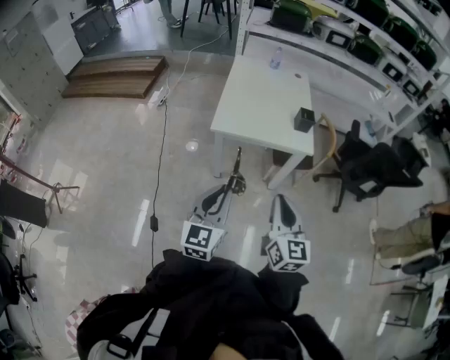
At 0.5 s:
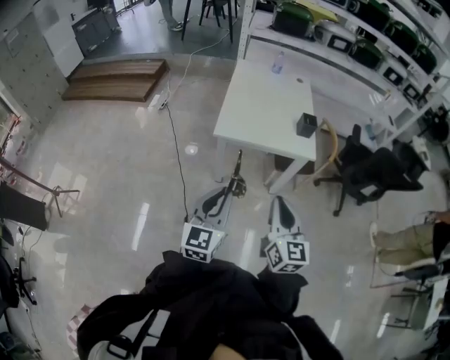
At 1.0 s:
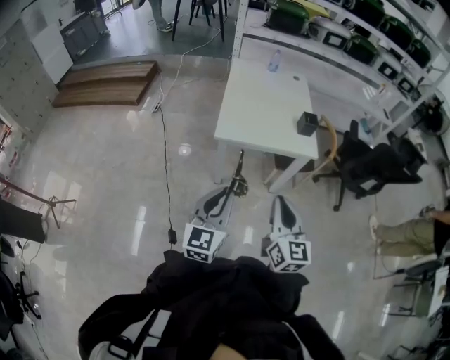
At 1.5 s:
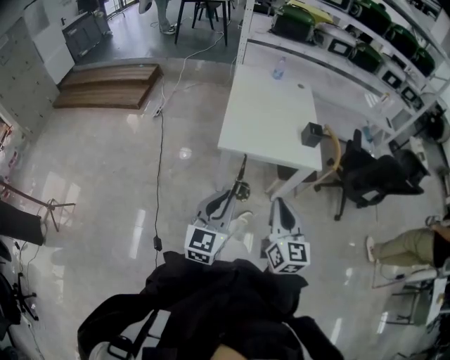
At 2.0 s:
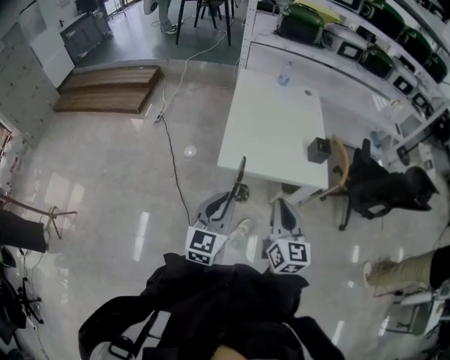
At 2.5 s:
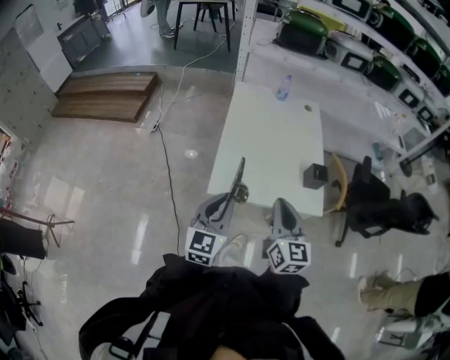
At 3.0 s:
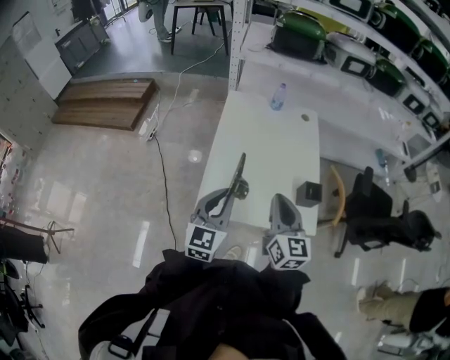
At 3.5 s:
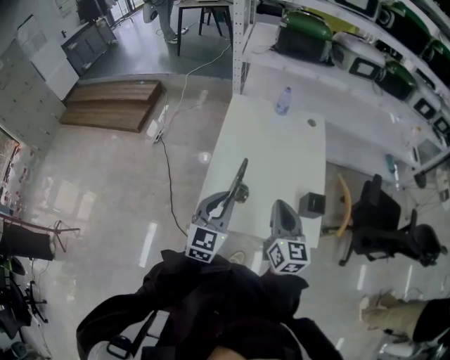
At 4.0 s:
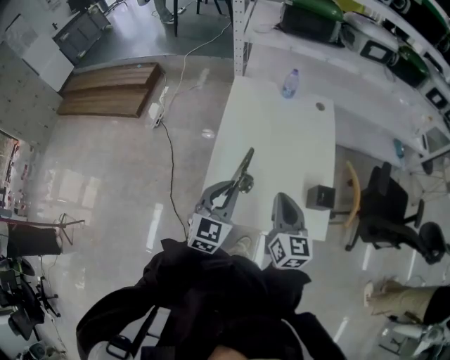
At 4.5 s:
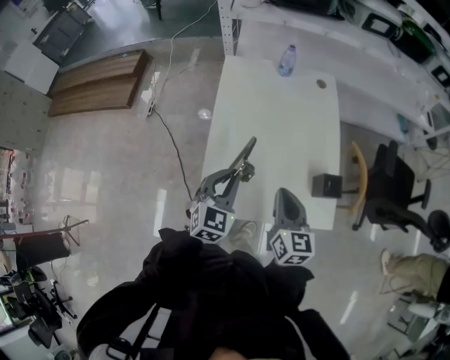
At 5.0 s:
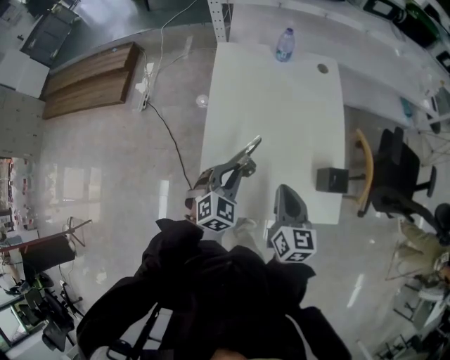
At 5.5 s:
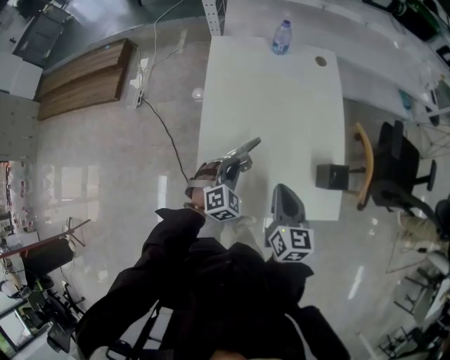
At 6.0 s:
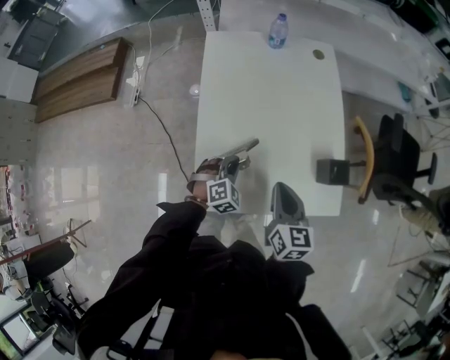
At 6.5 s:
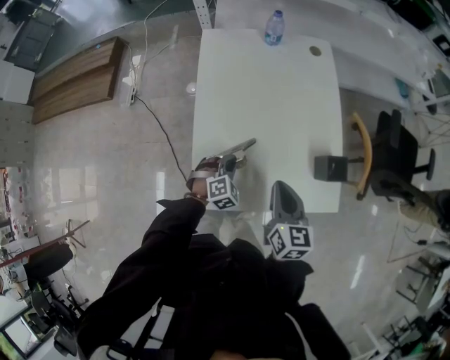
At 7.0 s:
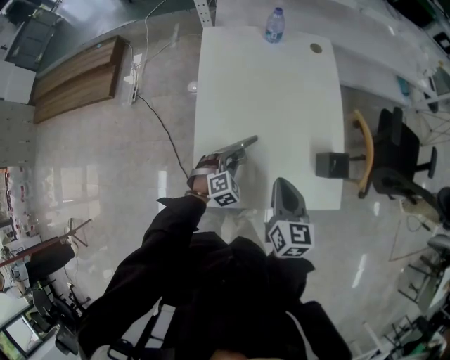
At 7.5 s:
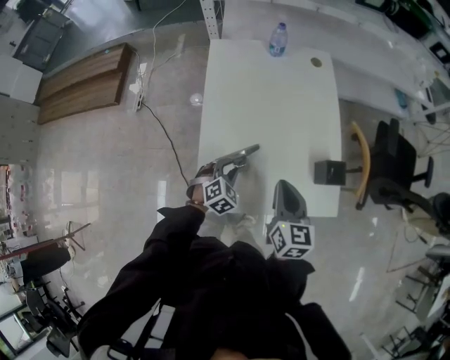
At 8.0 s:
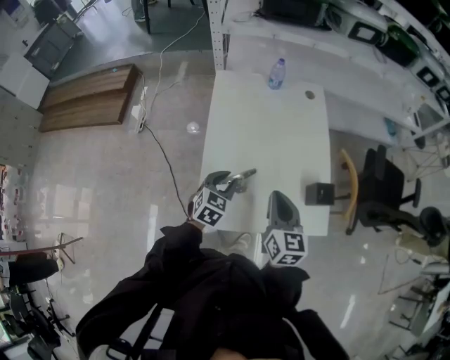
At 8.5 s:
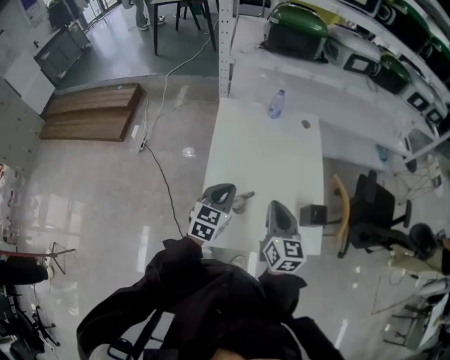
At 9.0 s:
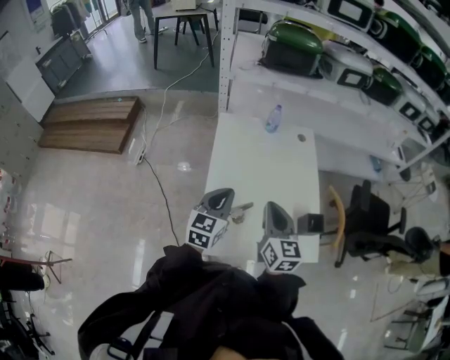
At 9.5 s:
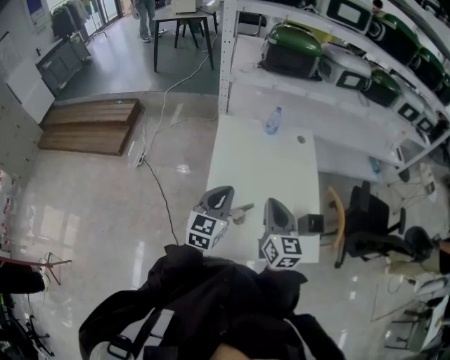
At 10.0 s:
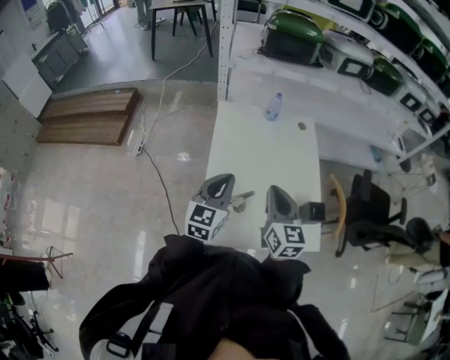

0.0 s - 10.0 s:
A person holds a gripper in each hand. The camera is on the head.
0.0 s - 2.0 s: Both grippers move forward and to the left, roughly 20 cm.
2.0 s - 4.0 s: Both grippers travel together forward, approximately 35 cm.
4.0 s - 6.0 s: The right gripper goes about 10 cm downward. The left gripper shifts roughly 25 cm downward, and points its fingers some 30 degrees further downward.
6.0 s - 8.0 s: The right gripper heads upward, covering about 5 cm. Meanwhile the left gripper travels upward by approximately 10 cm, and changes its angle by about 40 degrees.
8.0 s - 10.0 s: The left gripper travels upward by approximately 20 cm, turns by about 30 degrees, and closes. Meanwhile the right gripper travels upward by about 10 cm.

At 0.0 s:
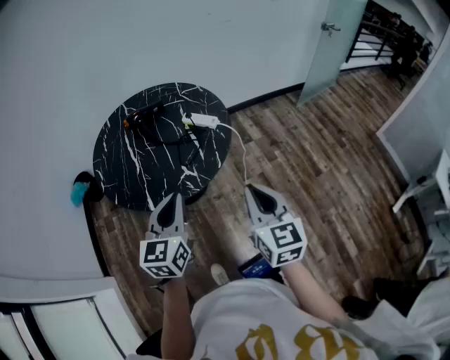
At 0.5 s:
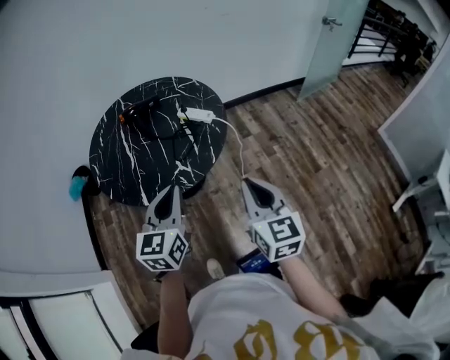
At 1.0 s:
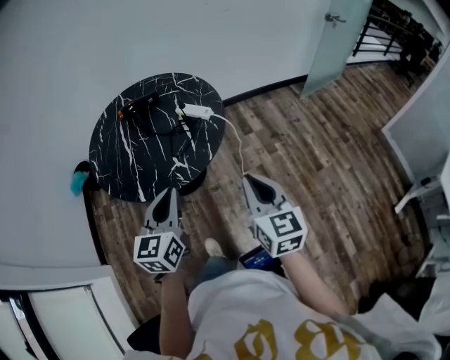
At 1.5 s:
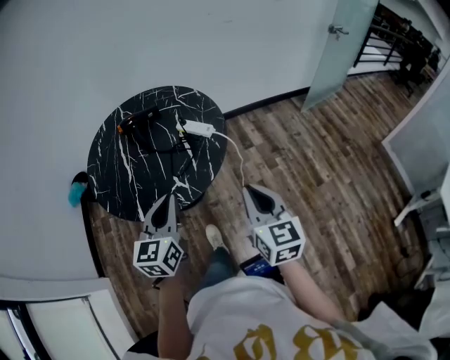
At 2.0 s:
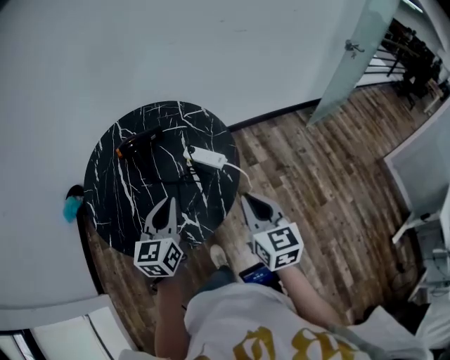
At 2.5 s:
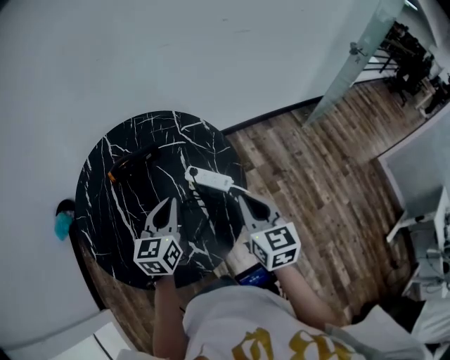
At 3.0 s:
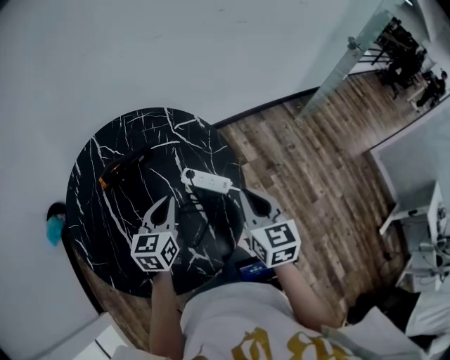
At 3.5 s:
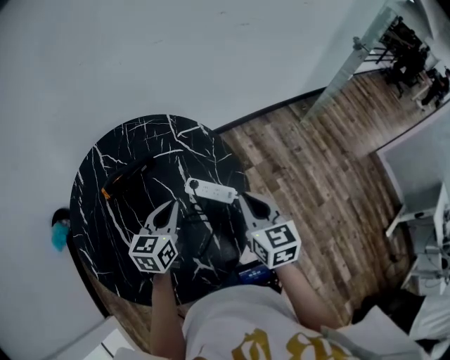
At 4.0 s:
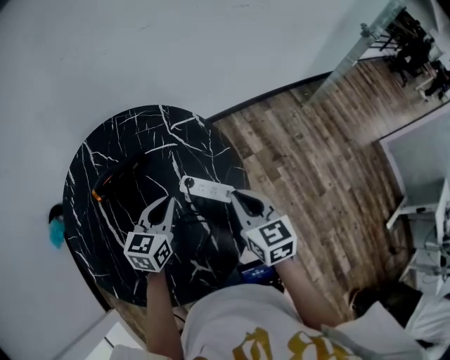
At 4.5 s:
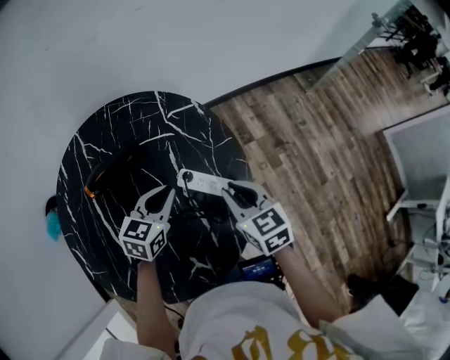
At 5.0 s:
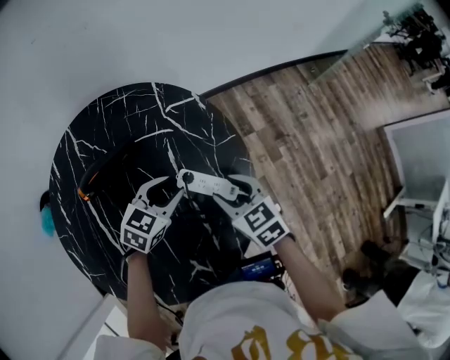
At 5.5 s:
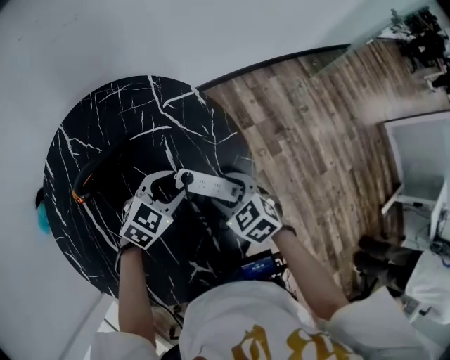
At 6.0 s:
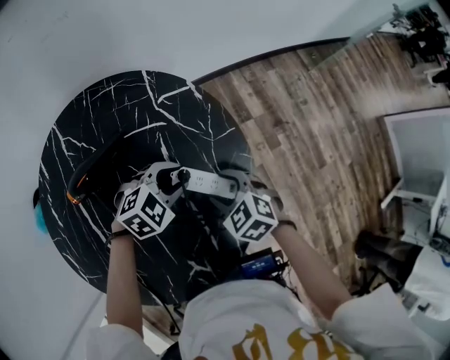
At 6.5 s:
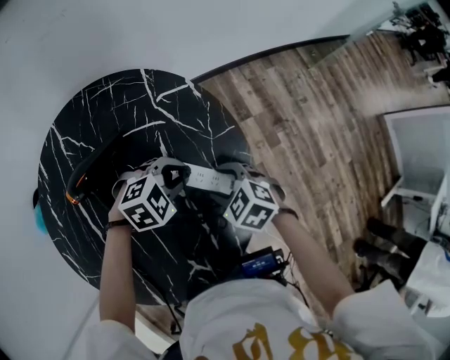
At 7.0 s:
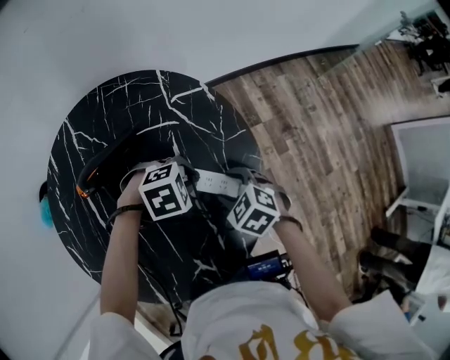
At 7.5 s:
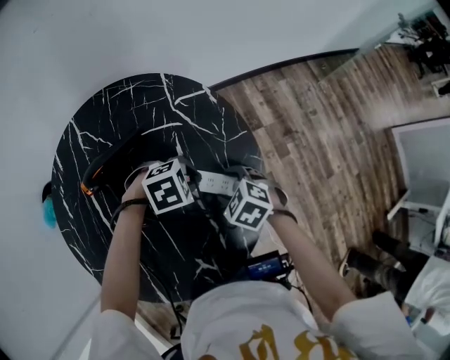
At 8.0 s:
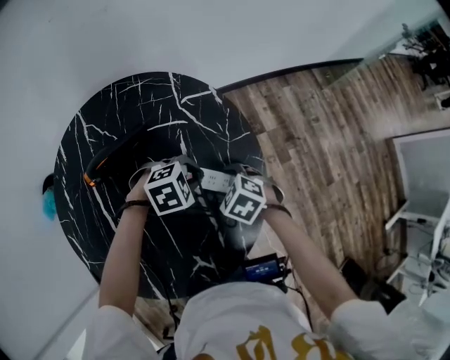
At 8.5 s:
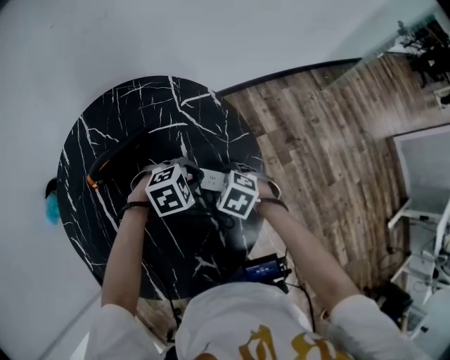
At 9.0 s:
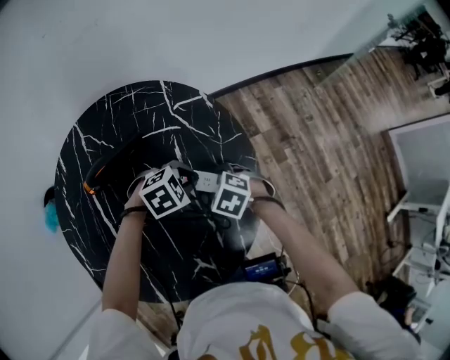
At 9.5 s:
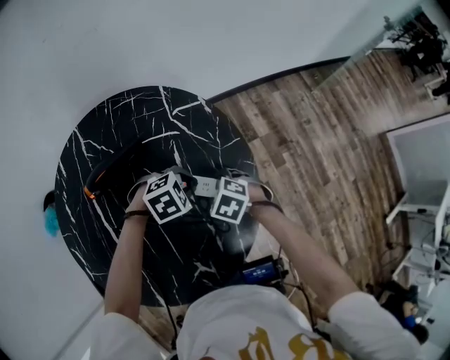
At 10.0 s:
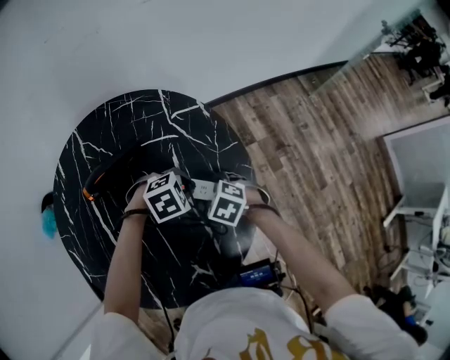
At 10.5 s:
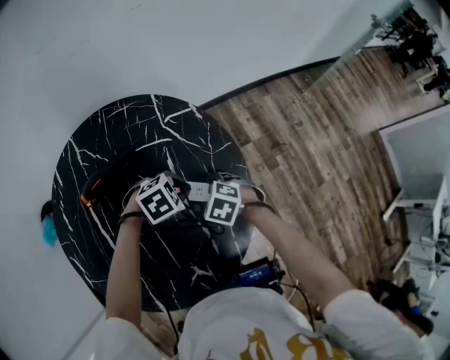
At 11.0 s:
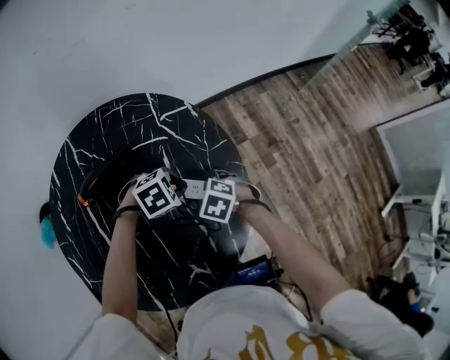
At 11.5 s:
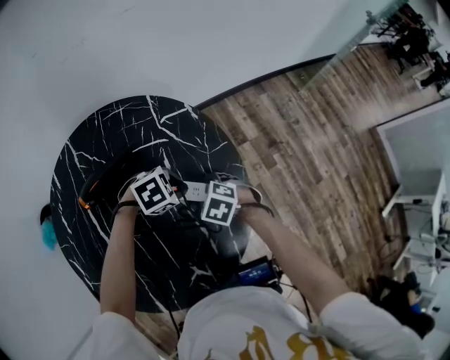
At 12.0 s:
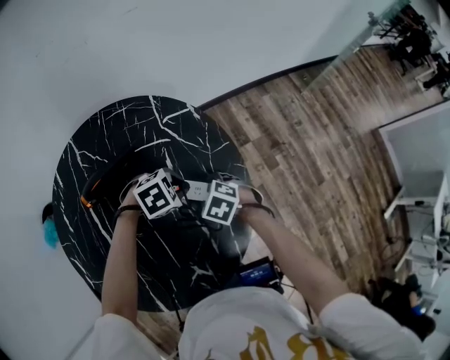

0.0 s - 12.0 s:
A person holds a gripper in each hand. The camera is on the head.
0.0 s - 2.0 s: Both grippers travel together forward, about 20 cm.
2.0 s - 4.0 s: Both grippers move forward and downward, approximately 25 cm. The left gripper turns by some 20 degrees.
4.0 s - 6.0 s: The left gripper heads downward and forward, covering some 10 cm, swivels roughly 60 degrees, and opens its fingers; the right gripper shifts about 15 cm downward, turns by some 40 degrees, and opens its fingers.
8.0 s - 12.0 s: The grippers make only small movements.

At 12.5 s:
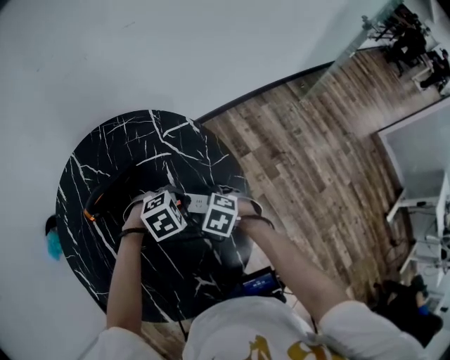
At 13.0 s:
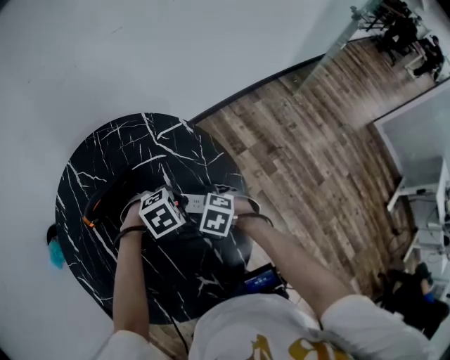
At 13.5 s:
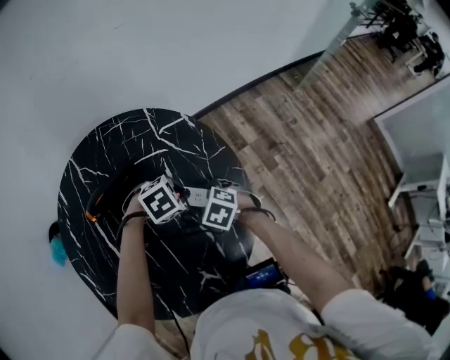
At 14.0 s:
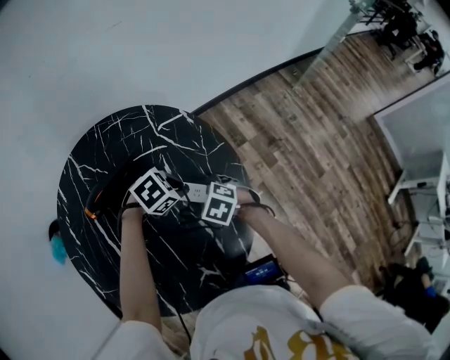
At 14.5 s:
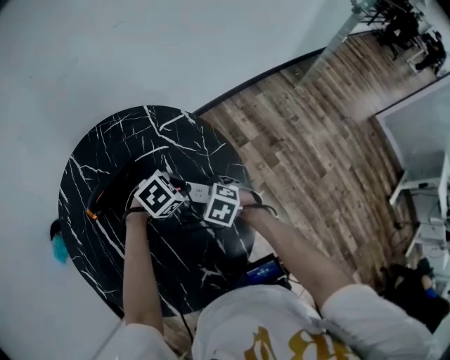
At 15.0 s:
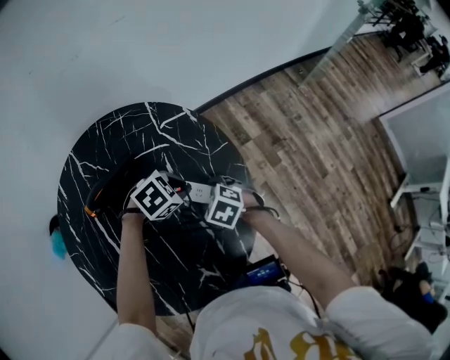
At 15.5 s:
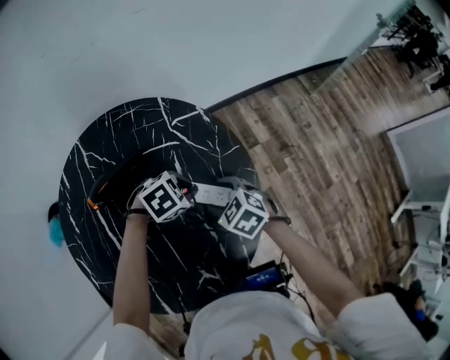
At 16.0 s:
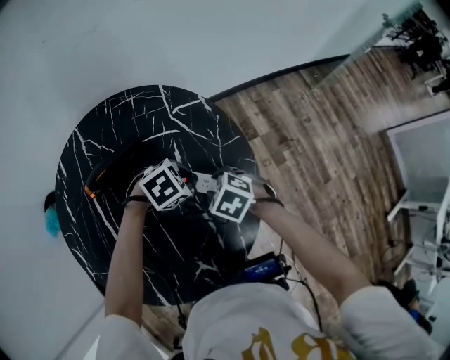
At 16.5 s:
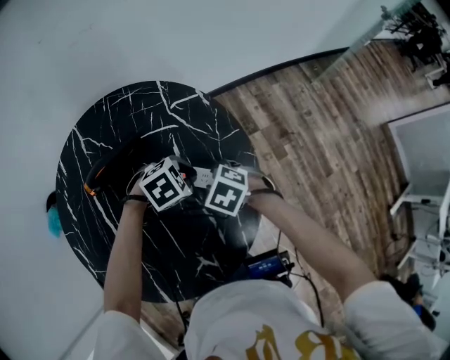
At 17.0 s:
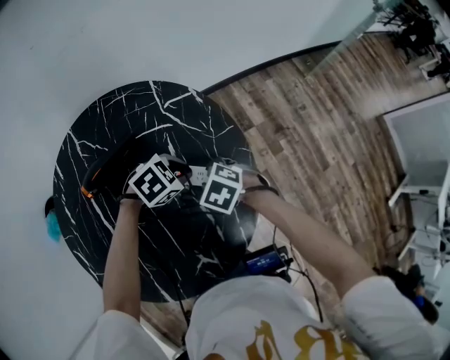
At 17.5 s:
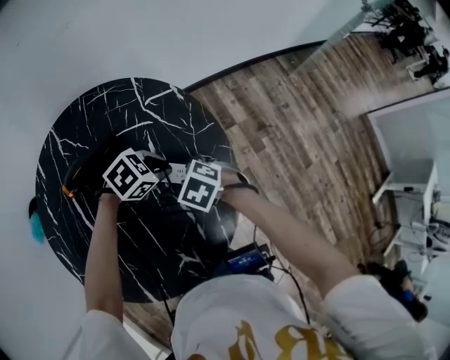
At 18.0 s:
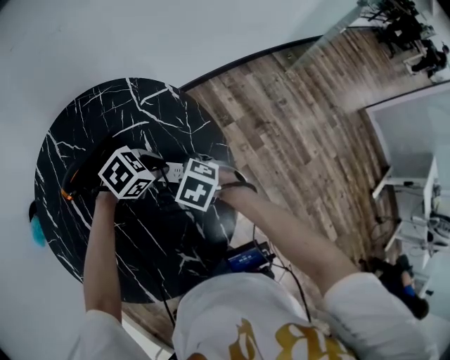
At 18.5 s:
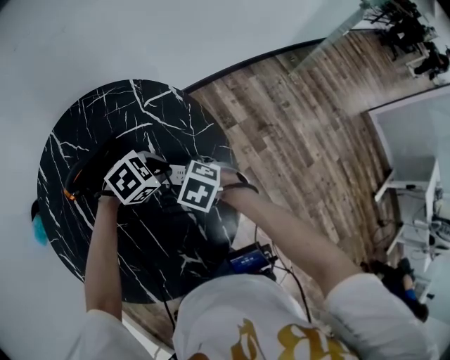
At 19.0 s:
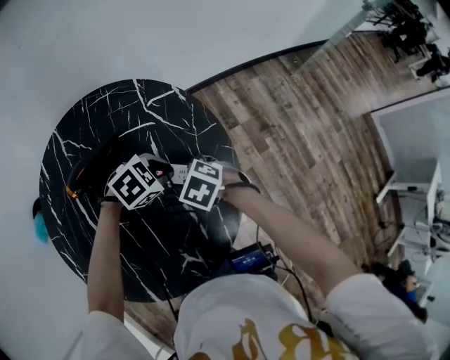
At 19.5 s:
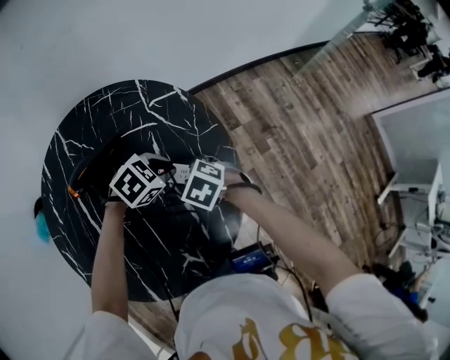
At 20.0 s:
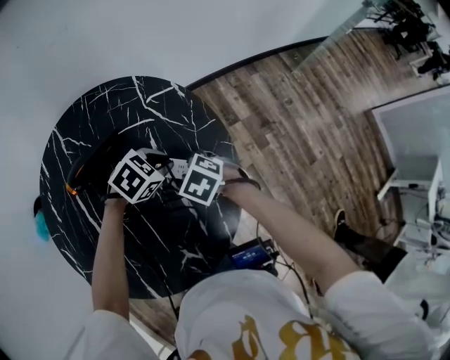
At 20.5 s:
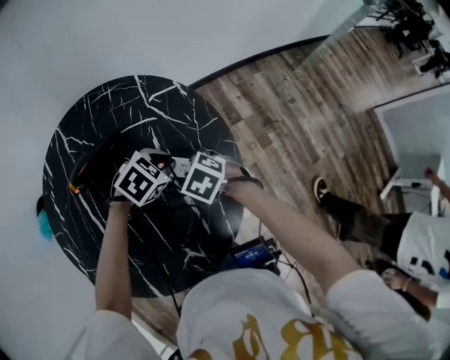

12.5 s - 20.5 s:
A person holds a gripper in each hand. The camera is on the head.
12.5 s - 14.5 s: There are only small adjustments of the grippers.
14.5 s - 16.5 s: The right gripper closes up.
16.5 s - 20.5 s: There are only small adjustments of the grippers.
